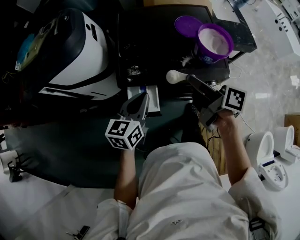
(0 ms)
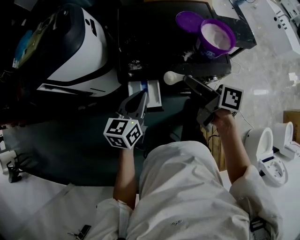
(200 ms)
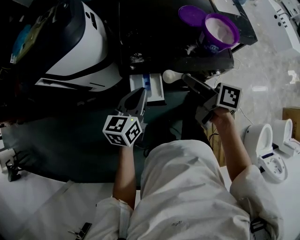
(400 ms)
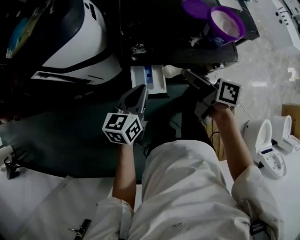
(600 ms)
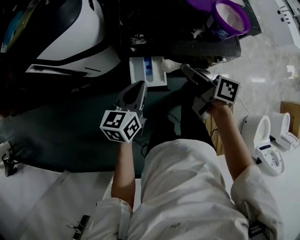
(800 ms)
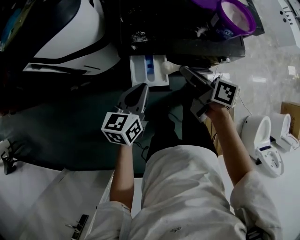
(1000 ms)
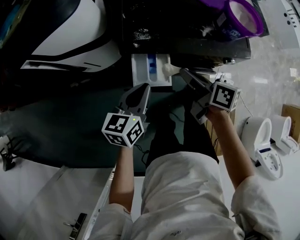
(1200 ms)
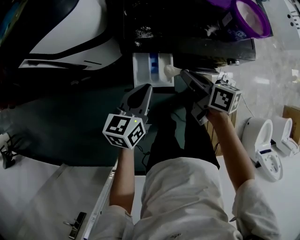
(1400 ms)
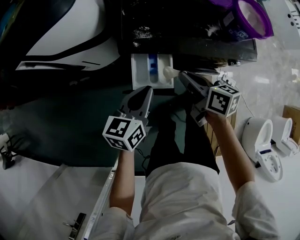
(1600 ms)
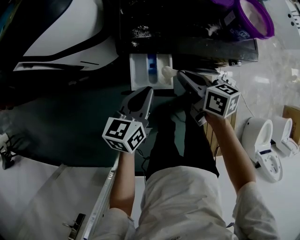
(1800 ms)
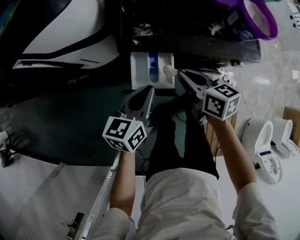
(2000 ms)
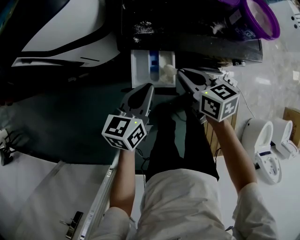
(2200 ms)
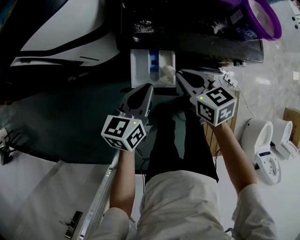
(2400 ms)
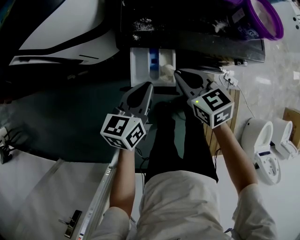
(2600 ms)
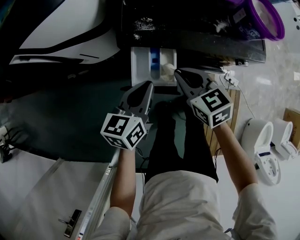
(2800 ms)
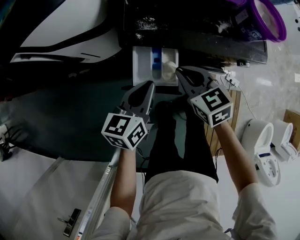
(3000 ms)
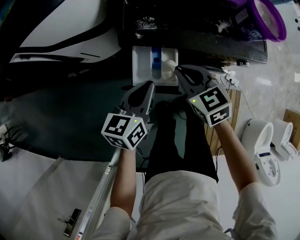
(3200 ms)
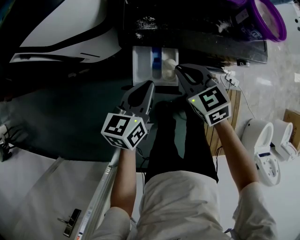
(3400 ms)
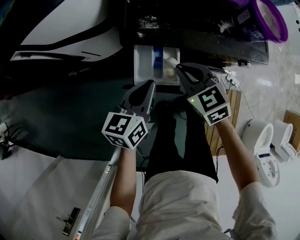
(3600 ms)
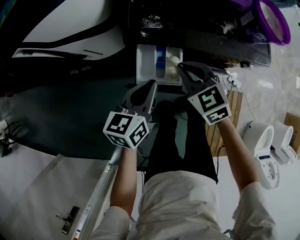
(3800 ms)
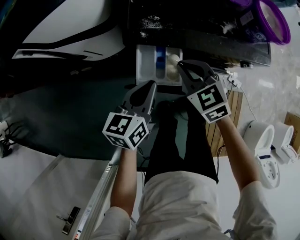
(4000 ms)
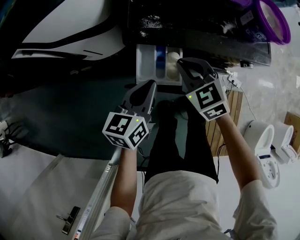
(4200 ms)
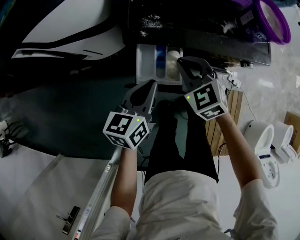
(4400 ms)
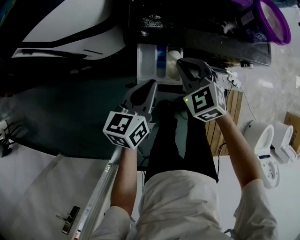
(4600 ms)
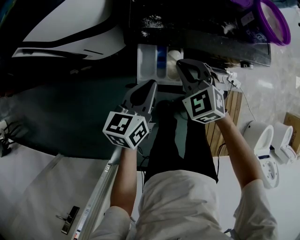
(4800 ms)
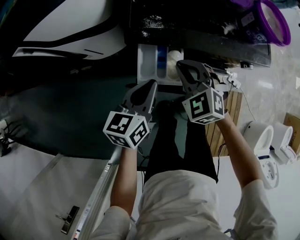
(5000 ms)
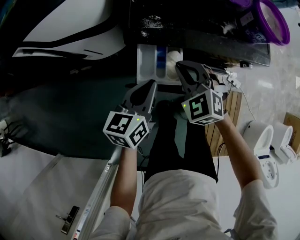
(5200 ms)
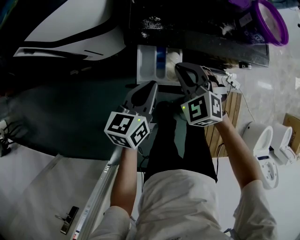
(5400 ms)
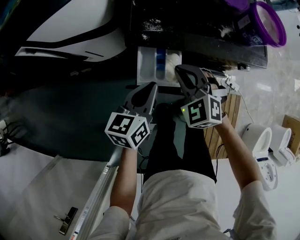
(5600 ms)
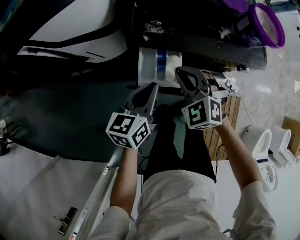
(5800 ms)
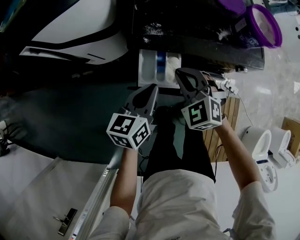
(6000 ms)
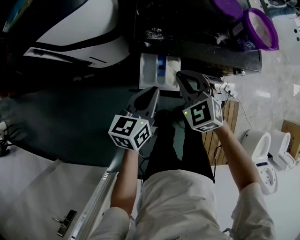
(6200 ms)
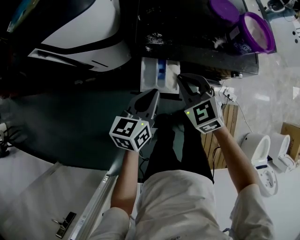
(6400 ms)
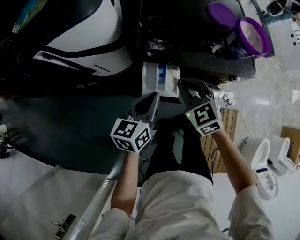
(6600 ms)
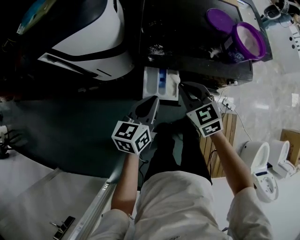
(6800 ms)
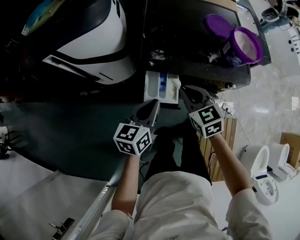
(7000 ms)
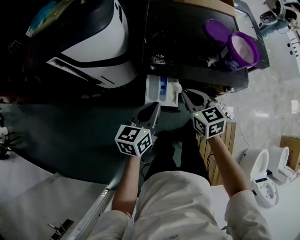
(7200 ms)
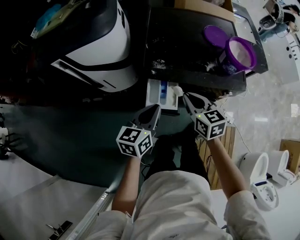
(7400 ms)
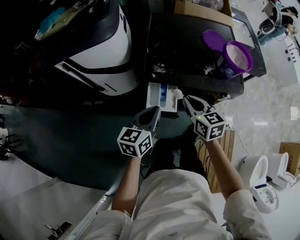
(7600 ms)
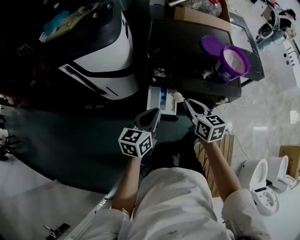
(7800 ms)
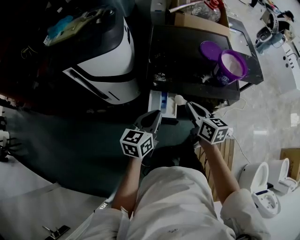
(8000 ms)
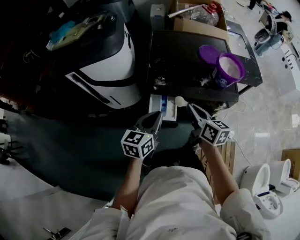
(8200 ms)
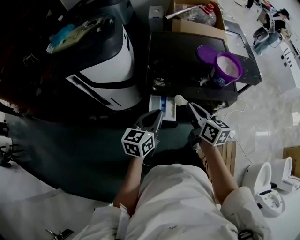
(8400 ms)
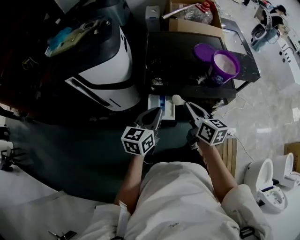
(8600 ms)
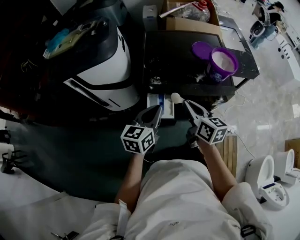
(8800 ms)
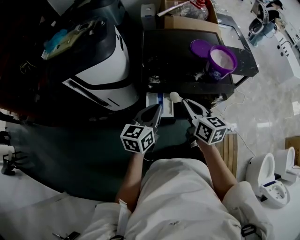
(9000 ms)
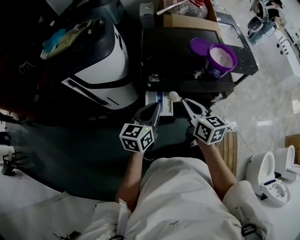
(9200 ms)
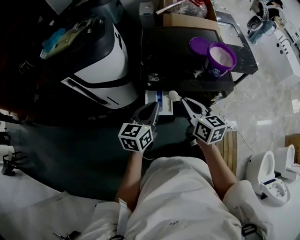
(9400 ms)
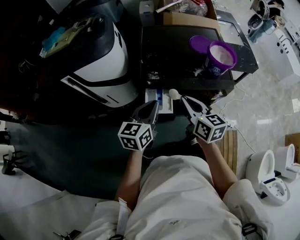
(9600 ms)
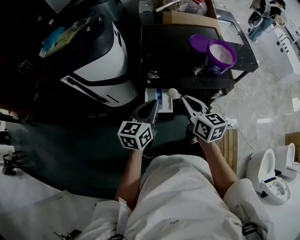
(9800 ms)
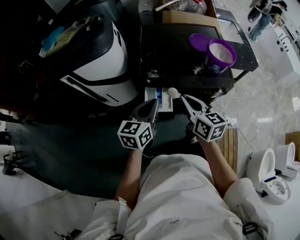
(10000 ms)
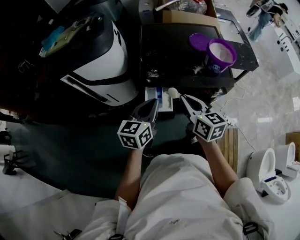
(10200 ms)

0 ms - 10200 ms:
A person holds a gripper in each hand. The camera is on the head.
0 ms - 1400 ms: The right gripper moves downward and to the left, approximately 20 cm; the left gripper goes about 10 cm downward and to the left.
1400 ms - 3000 ms: The right gripper rolls counterclockwise, seen from behind, by approximately 50 degrees.
3000 ms - 4400 ms: The right gripper turns by roughly 20 degrees.
4400 ms - 5800 ms: The grippers make only small movements.
5800 ms - 7200 ms: The two grippers go roughly 5 cm upward. The right gripper twists roughly 40 degrees clockwise, seen from behind.
7200 ms - 8800 ms: Both grippers move upward, roughly 10 cm. The right gripper turns by approximately 30 degrees.
8800 ms - 10200 ms: The grippers move only a little.

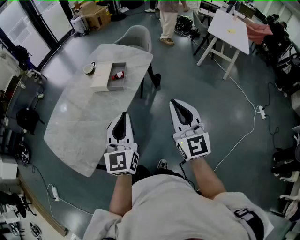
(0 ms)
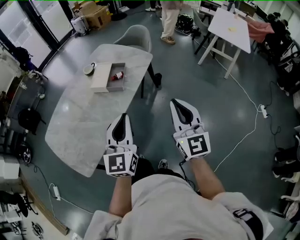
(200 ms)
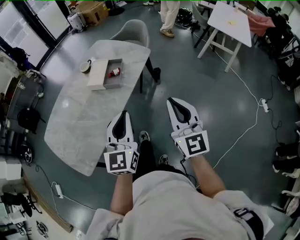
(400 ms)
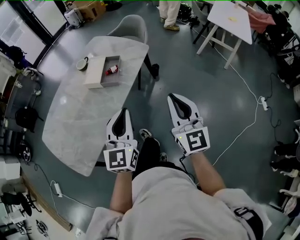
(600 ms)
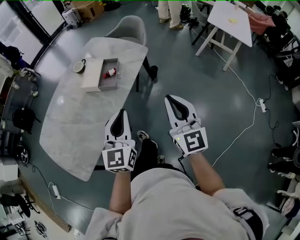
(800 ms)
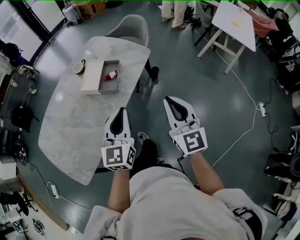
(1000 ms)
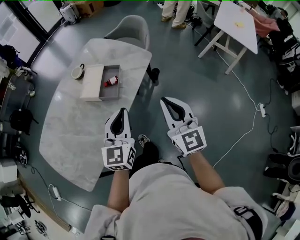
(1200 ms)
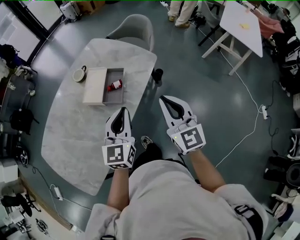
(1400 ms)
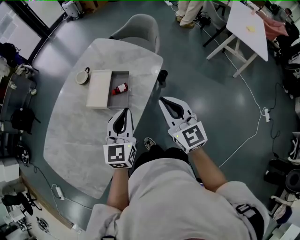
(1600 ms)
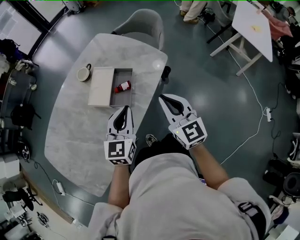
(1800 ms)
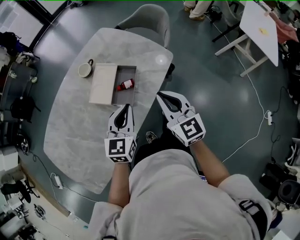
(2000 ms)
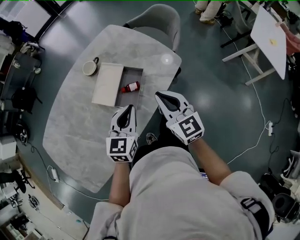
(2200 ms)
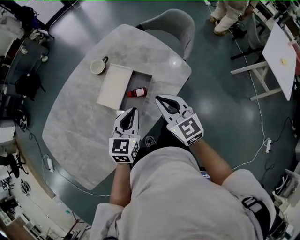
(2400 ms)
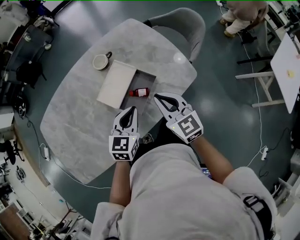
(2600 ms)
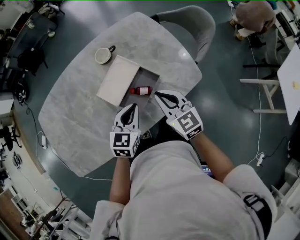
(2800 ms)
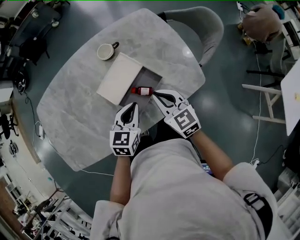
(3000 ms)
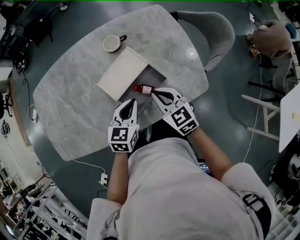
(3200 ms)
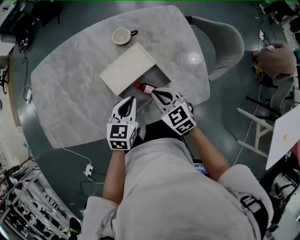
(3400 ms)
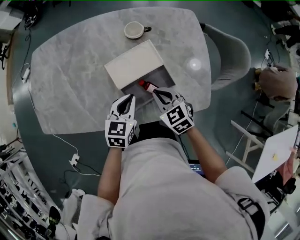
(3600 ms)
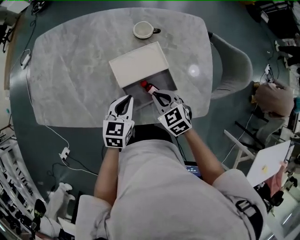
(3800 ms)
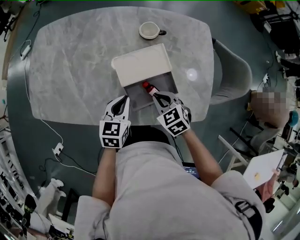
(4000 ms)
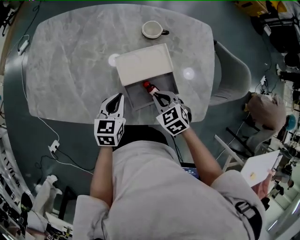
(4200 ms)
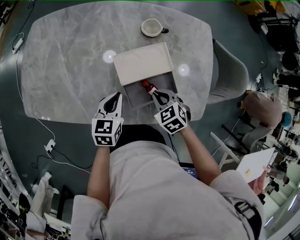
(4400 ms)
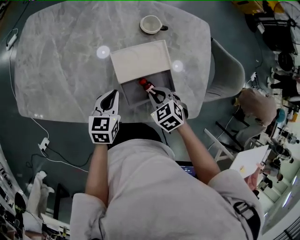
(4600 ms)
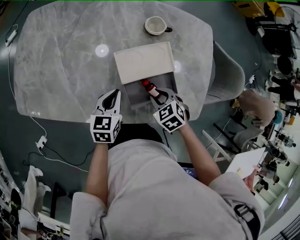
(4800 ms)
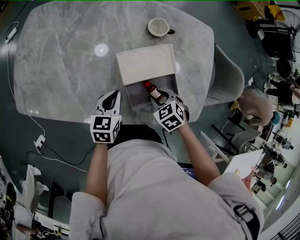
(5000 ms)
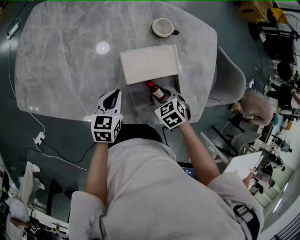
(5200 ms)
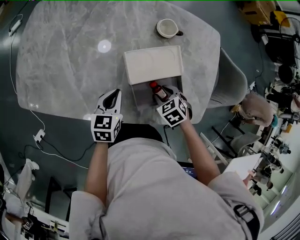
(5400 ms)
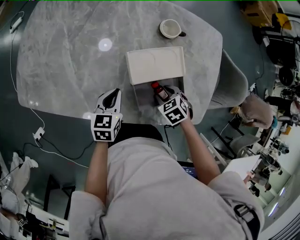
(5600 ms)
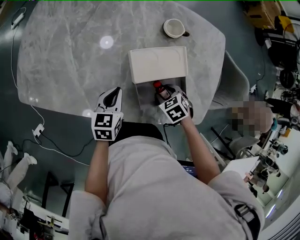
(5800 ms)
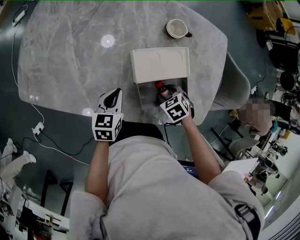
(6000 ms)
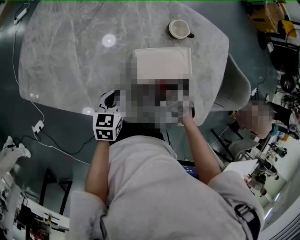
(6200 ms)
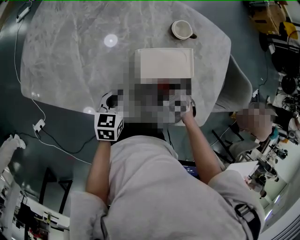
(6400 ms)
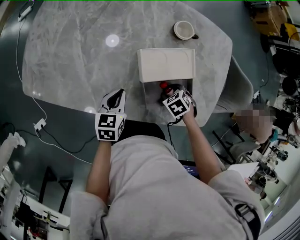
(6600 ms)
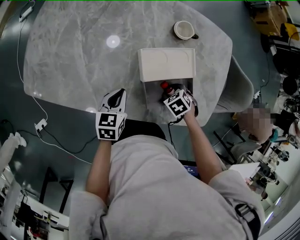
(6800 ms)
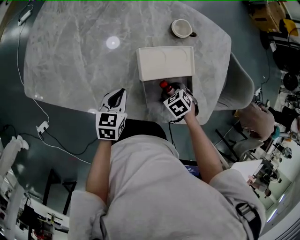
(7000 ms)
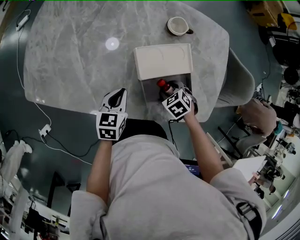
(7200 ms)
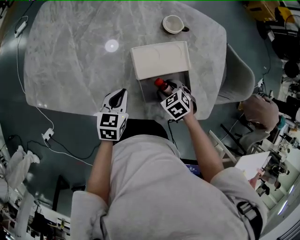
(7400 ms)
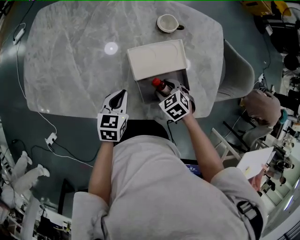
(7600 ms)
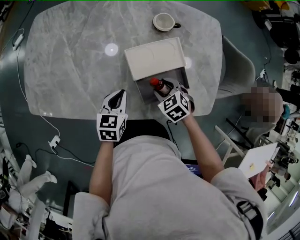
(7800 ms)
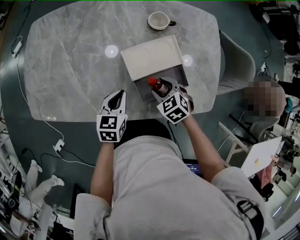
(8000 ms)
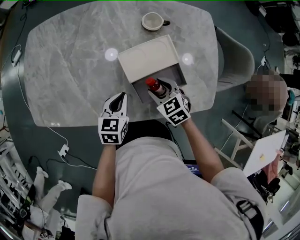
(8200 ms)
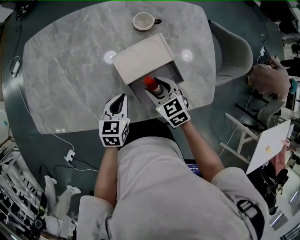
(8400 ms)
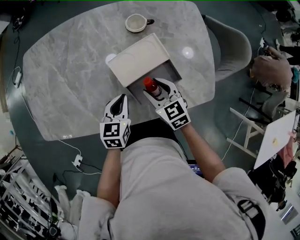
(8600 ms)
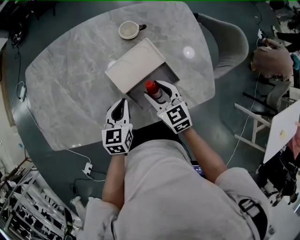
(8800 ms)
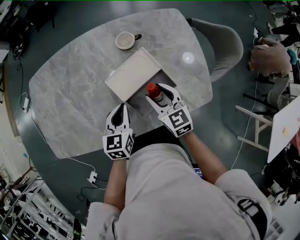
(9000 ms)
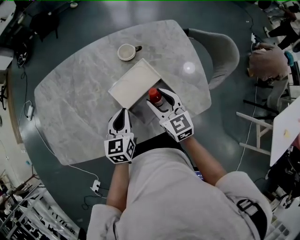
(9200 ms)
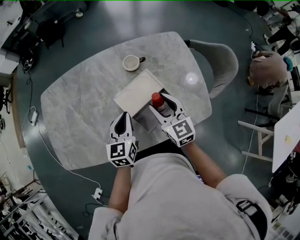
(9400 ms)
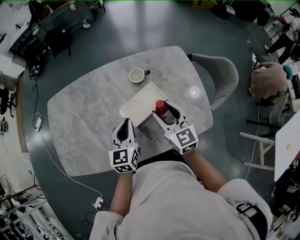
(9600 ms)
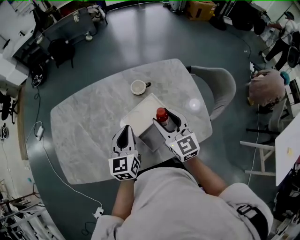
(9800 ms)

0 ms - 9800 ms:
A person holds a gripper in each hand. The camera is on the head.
0 ms - 1400 ms: Both grippers travel together forward, approximately 25 cm.
1400 ms - 2800 ms: The right gripper moves some 30 cm, and swivels approximately 40 degrees. Meanwhile the left gripper shifts by some 25 cm, and turns by roughly 30 degrees.
2800 ms - 4200 ms: The right gripper heads downward, covering approximately 15 cm, and points its fingers about 30 degrees further downward. The left gripper ends up about 15 cm from where it was, and swivels about 40 degrees.
4200 ms - 5600 ms: The right gripper is displaced downward by about 10 cm, turns by about 20 degrees, and opens up. Meanwhile the left gripper ends up some 10 cm from where it was.
5600 ms - 7000 ms: The grippers move only a little.
7000 ms - 8400 ms: The left gripper changes place by some 5 cm, while the right gripper is displaced upward by roughly 10 cm, and tips its fingers upward by approximately 40 degrees.
8400 ms - 9800 ms: Both grippers travel together upward, roughly 20 cm. The right gripper angles its fingers upward, by approximately 30 degrees; the left gripper rotates approximately 20 degrees.

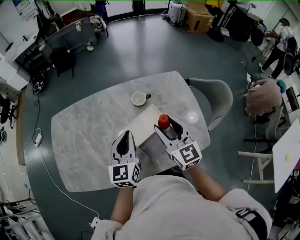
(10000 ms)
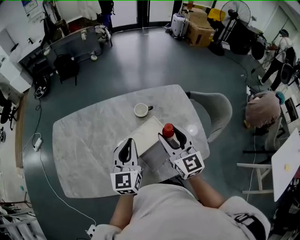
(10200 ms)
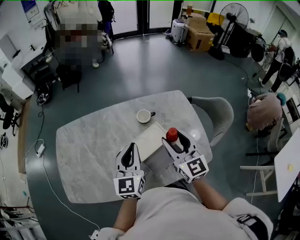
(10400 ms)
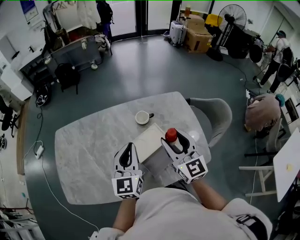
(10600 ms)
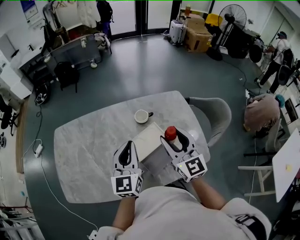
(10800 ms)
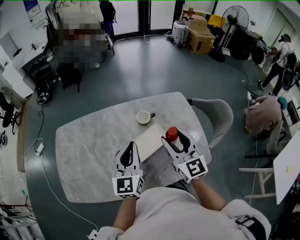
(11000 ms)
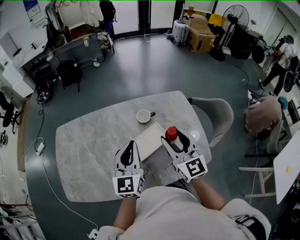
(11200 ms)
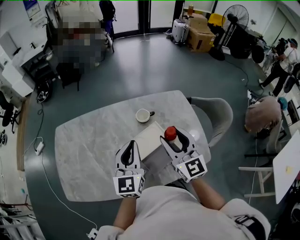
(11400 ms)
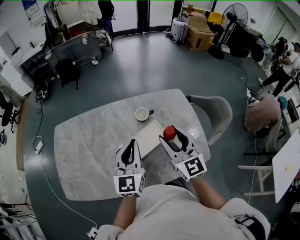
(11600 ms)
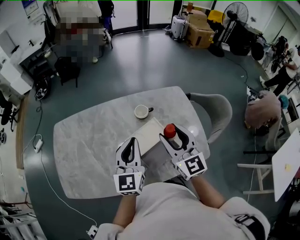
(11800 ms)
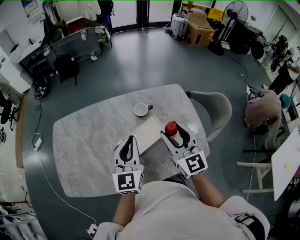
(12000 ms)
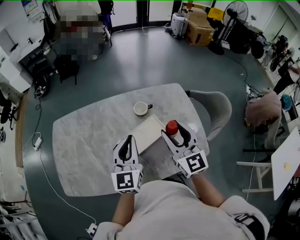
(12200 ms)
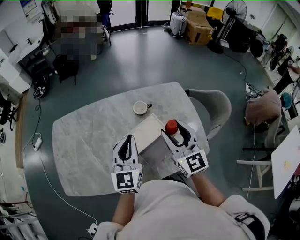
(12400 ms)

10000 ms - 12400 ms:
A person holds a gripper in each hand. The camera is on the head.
10000 ms - 11200 ms: The grippers both shift upward by roughly 5 cm.
11200 ms - 12400 ms: The grippers move only a little.

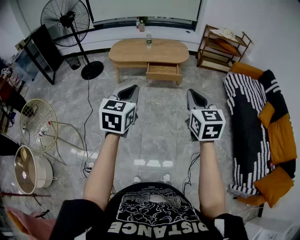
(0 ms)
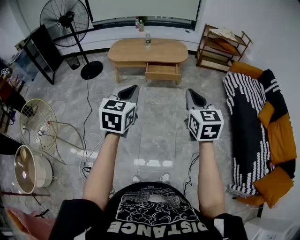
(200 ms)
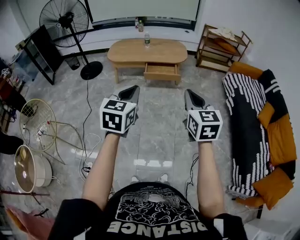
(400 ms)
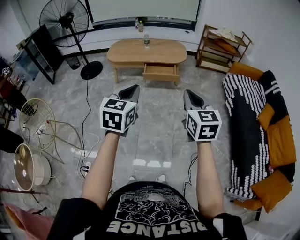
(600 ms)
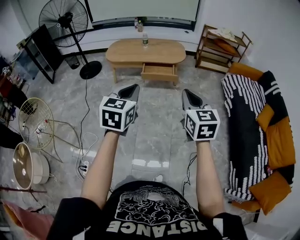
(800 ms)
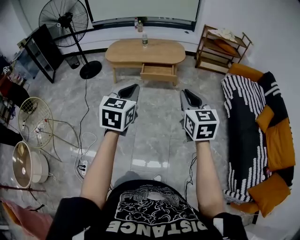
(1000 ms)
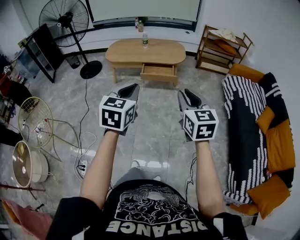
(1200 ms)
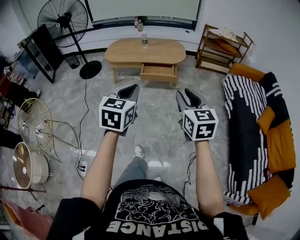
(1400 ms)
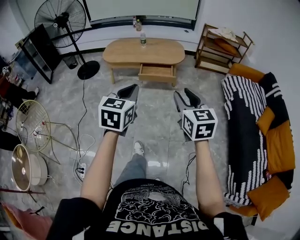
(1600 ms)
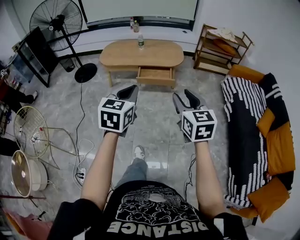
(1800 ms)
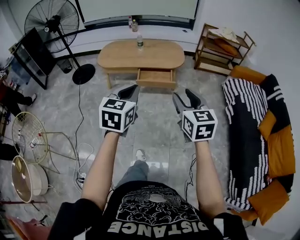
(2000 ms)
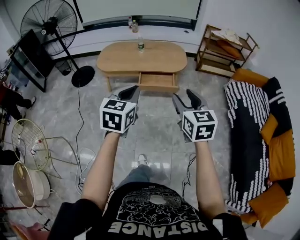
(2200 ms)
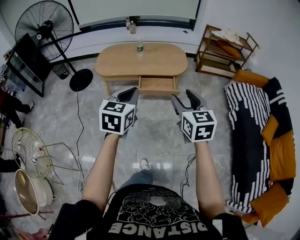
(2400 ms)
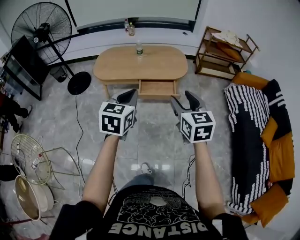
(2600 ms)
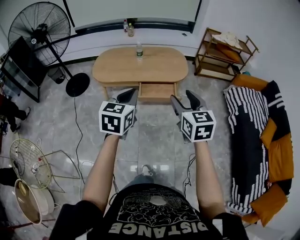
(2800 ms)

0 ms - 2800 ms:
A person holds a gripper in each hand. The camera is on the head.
0 ms - 1400 ms: The grippers both shift to the right by approximately 10 cm.
1400 ms - 2800 ms: The two grippers go roughly 30 cm forward.
